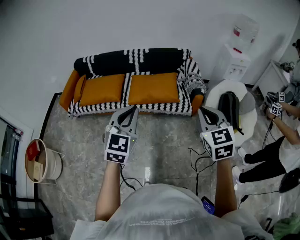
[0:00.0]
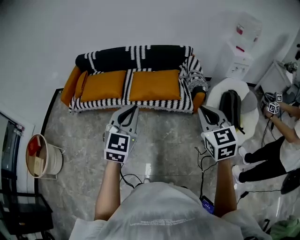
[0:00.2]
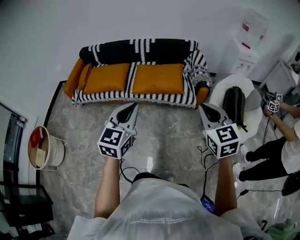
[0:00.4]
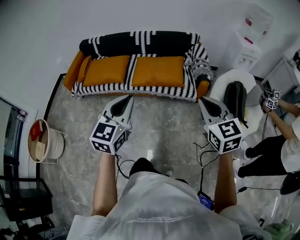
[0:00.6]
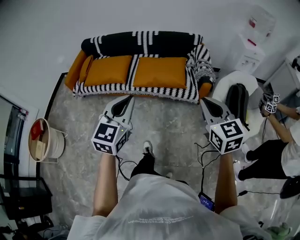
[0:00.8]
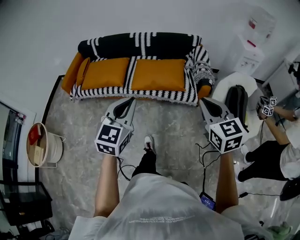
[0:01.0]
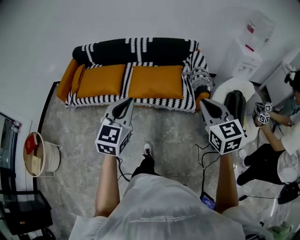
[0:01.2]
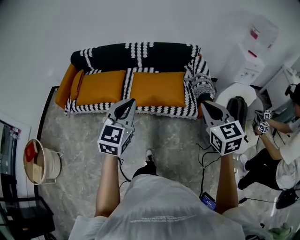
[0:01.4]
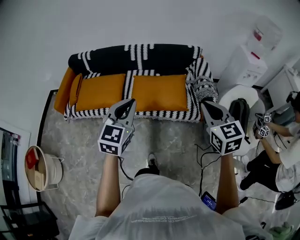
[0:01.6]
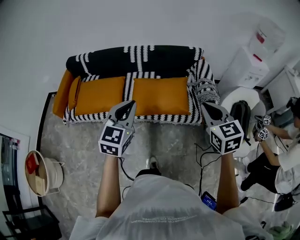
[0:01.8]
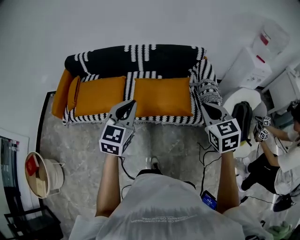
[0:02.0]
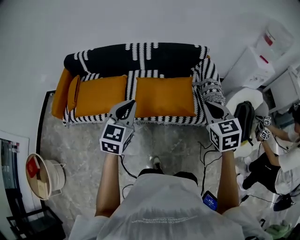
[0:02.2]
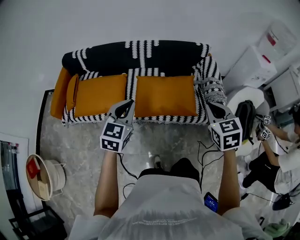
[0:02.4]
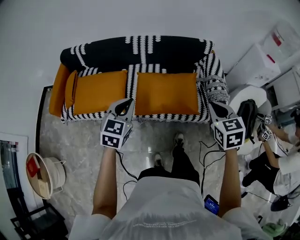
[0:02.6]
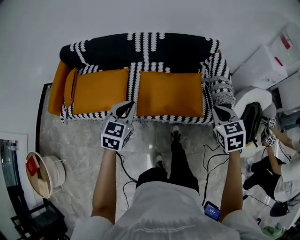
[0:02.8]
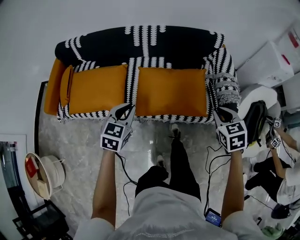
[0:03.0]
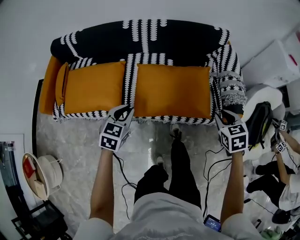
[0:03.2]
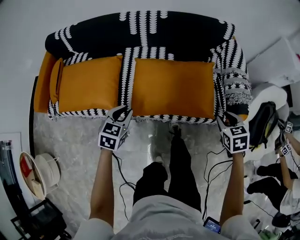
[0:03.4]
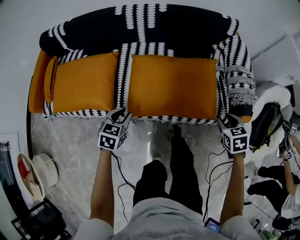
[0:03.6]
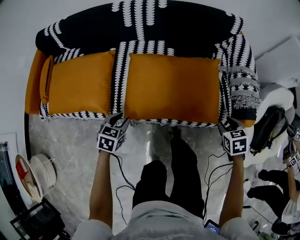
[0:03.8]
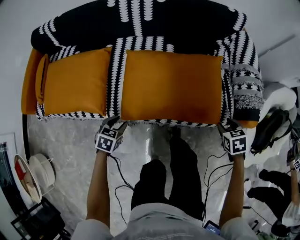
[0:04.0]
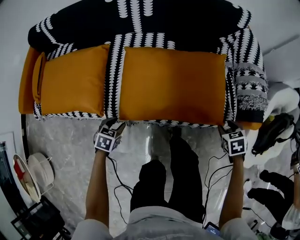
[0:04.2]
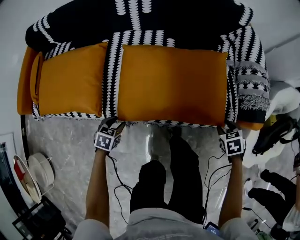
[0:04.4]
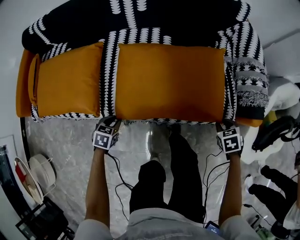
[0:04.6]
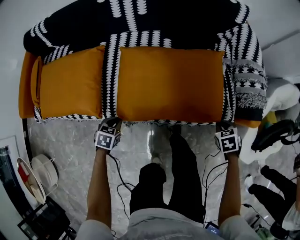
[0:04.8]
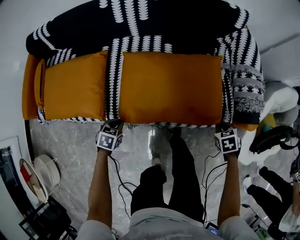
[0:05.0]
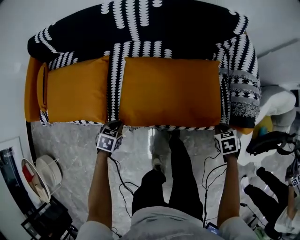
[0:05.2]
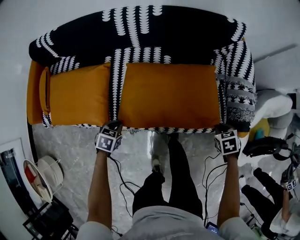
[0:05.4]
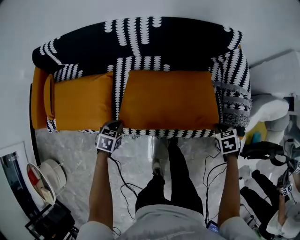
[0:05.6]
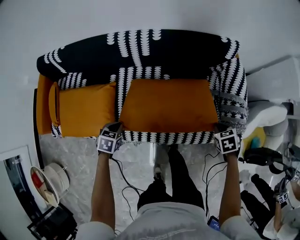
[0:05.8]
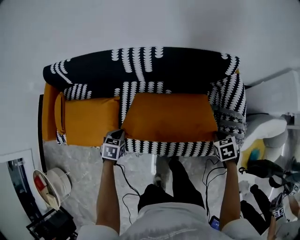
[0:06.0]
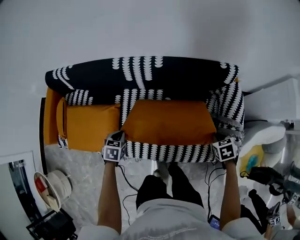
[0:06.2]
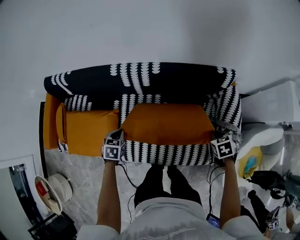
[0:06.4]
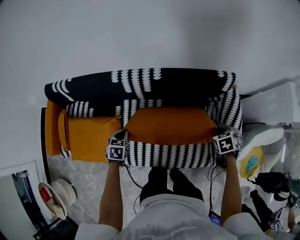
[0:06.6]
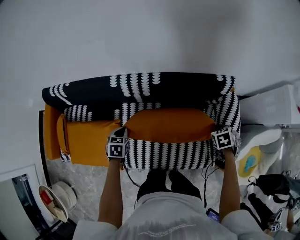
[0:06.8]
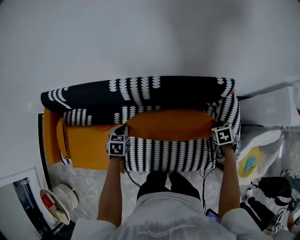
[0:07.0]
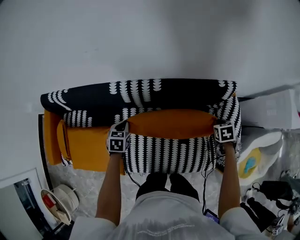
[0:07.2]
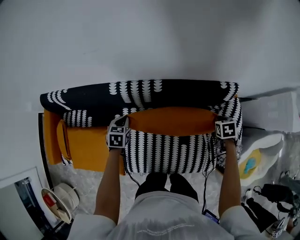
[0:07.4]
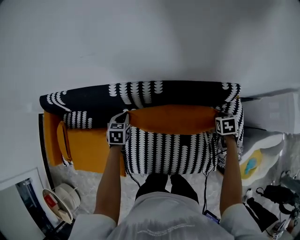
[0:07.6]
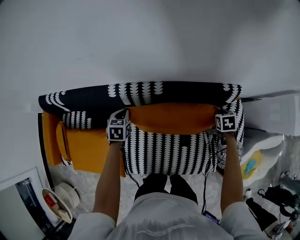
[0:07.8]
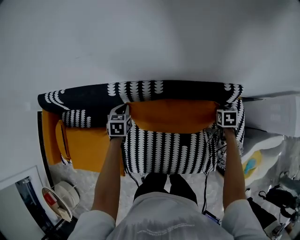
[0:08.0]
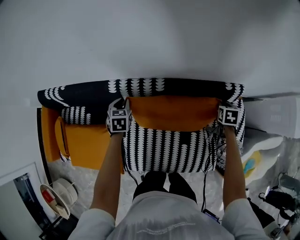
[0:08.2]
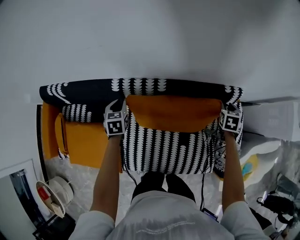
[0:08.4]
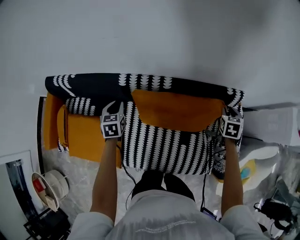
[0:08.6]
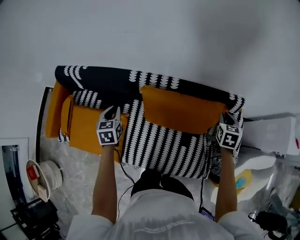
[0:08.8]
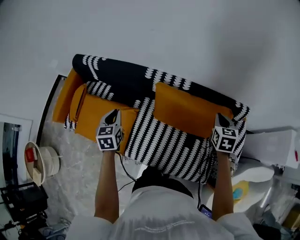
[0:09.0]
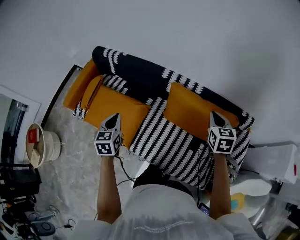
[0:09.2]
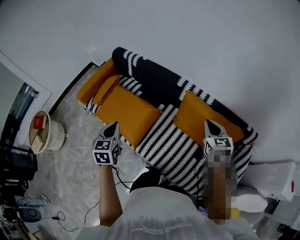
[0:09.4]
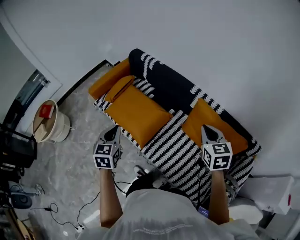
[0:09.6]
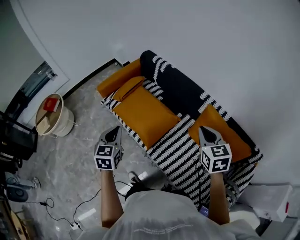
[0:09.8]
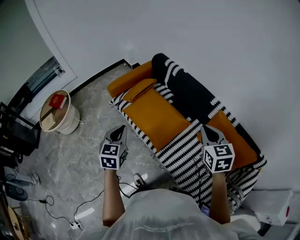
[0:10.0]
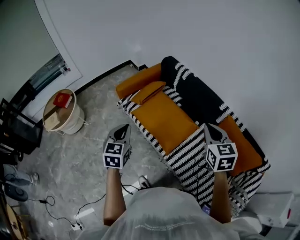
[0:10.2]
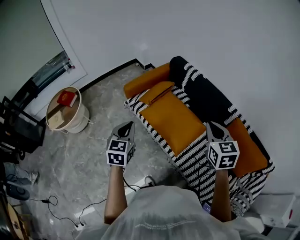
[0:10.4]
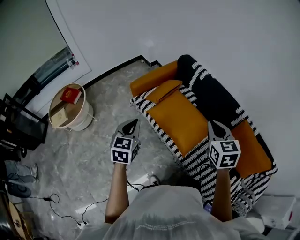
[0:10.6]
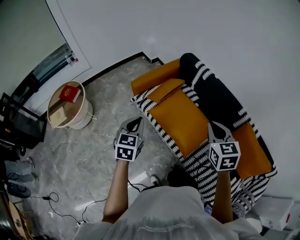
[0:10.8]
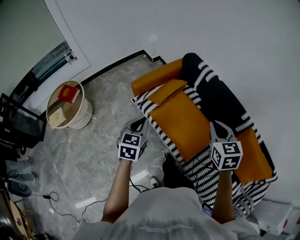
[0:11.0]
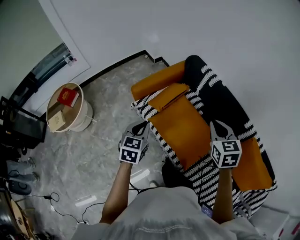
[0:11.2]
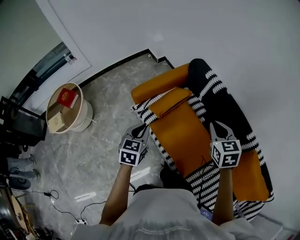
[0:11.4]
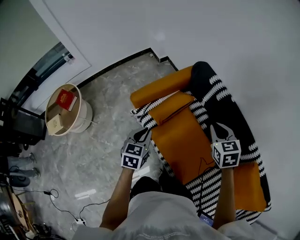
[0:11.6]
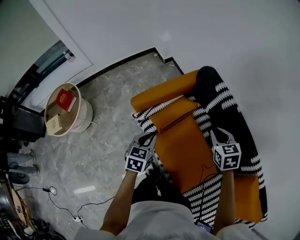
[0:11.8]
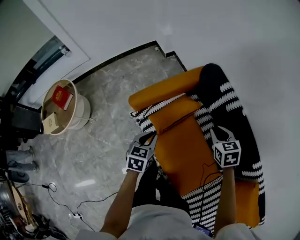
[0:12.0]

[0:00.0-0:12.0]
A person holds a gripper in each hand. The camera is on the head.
0:00.0 to 0:01.6: The two grippers go approximately 25 cm forward.
0:01.6 to 0:03.0: The right gripper goes approximately 30 cm downward and forward, and swivels roughly 30 degrees, while the left gripper moves downward, forward and to the left, some 35 cm, and rotates some 20 degrees.
0:03.0 to 0:04.4: Both grippers travel together downward, roughly 40 cm. The right gripper turns by some 30 degrees, and opens up, while the left gripper tilts its fingers some 30 degrees downward, and opens up.
0:04.4 to 0:06.0: The two grippers go some 20 cm upward. The right gripper closes its fingers; the left gripper closes its fingers.
0:06.0 to 0:07.6: The right gripper shifts by approximately 30 cm, while the left gripper changes place by about 30 cm.
0:07.6 to 0:09.0: The right gripper heads upward and to the left, covering roughly 25 cm, points its fingers approximately 30 degrees further upward, and opens, then closes once more. The left gripper moves backward, upward and to the left, approximately 30 cm, and changes its angle by about 30 degrees.
0:09.0 to 0:10.4: Both grippers are carried about 50 cm. The right gripper rotates about 50 degrees, while the left gripper changes its angle by roughly 20 degrees.
0:10.4 to 0:12.0: The two grippers go some 50 cm forward and downward. The left gripper rotates about 20 degrees, while the right gripper swivels about 30 degrees.

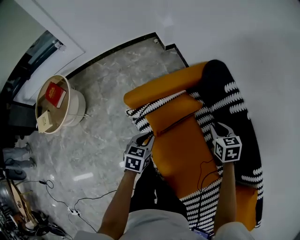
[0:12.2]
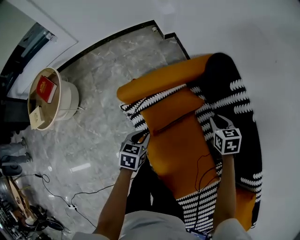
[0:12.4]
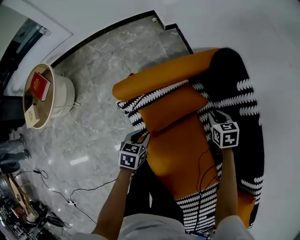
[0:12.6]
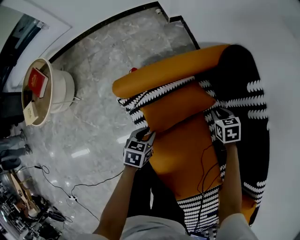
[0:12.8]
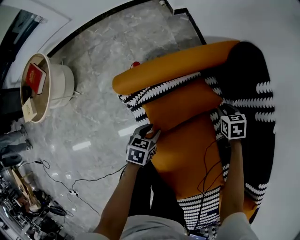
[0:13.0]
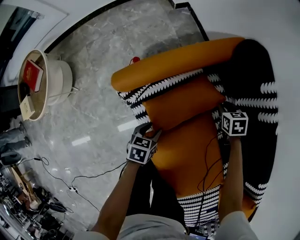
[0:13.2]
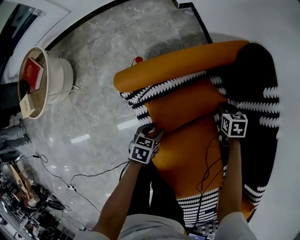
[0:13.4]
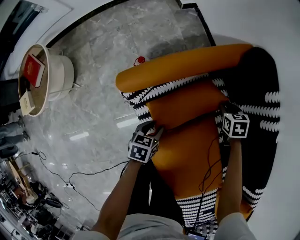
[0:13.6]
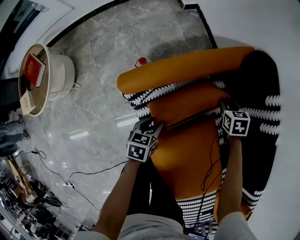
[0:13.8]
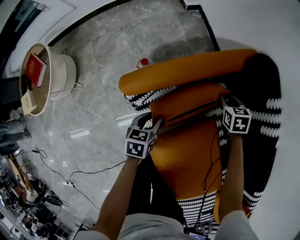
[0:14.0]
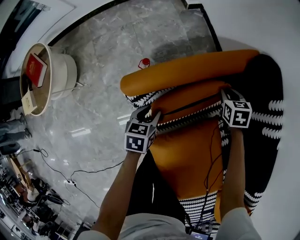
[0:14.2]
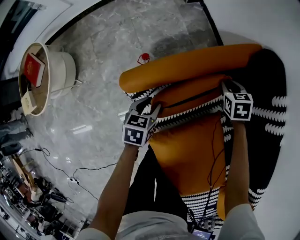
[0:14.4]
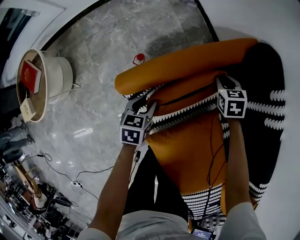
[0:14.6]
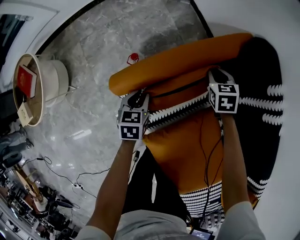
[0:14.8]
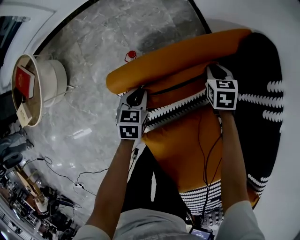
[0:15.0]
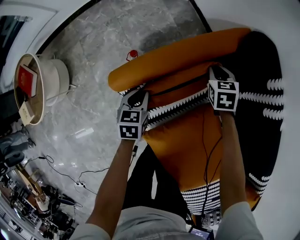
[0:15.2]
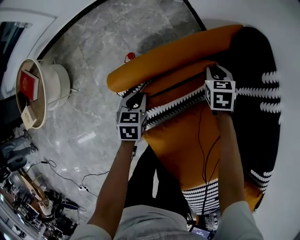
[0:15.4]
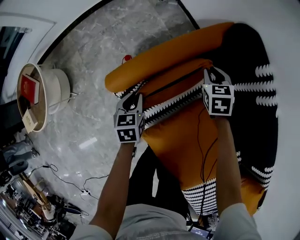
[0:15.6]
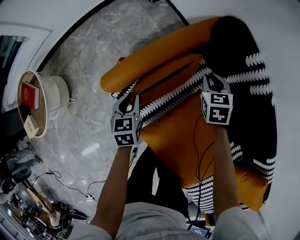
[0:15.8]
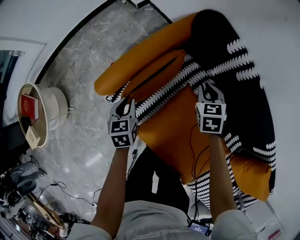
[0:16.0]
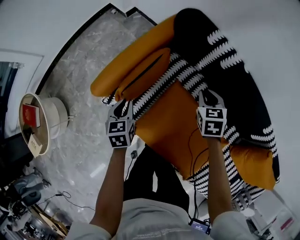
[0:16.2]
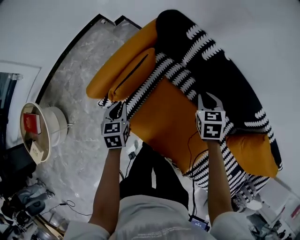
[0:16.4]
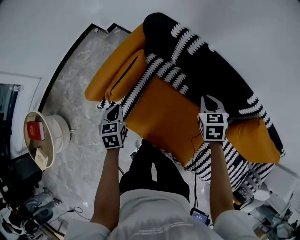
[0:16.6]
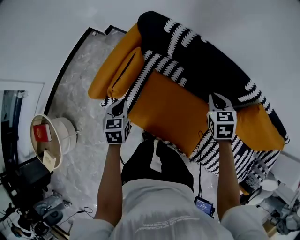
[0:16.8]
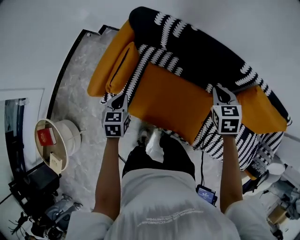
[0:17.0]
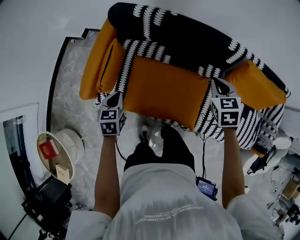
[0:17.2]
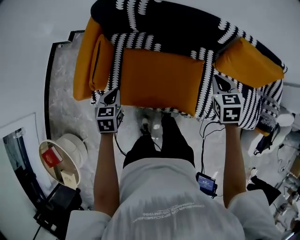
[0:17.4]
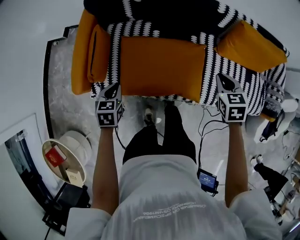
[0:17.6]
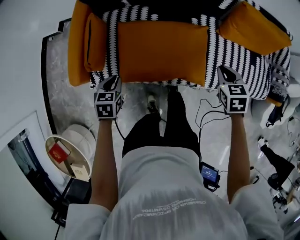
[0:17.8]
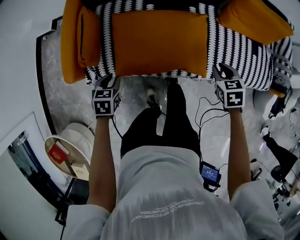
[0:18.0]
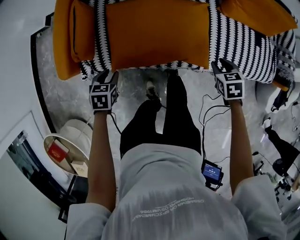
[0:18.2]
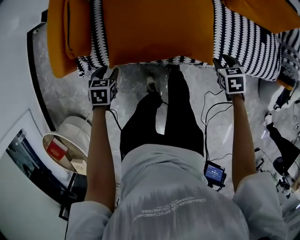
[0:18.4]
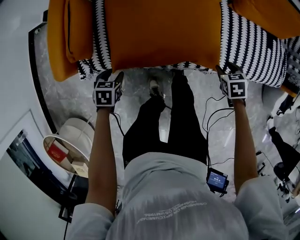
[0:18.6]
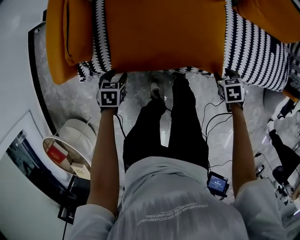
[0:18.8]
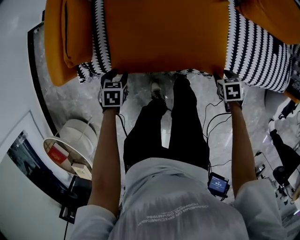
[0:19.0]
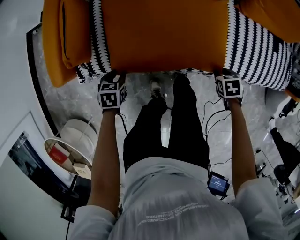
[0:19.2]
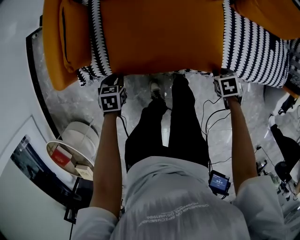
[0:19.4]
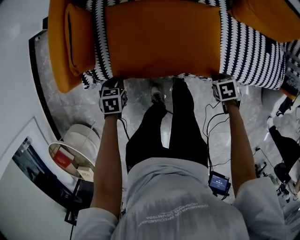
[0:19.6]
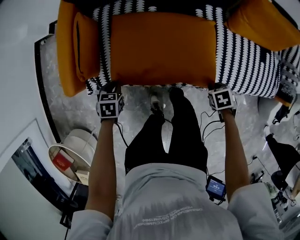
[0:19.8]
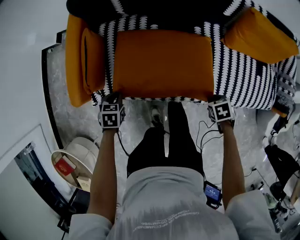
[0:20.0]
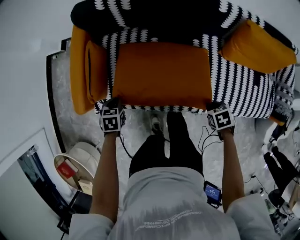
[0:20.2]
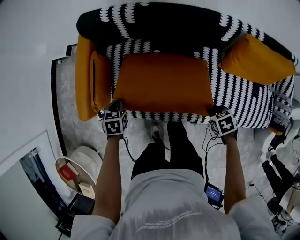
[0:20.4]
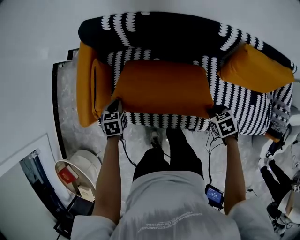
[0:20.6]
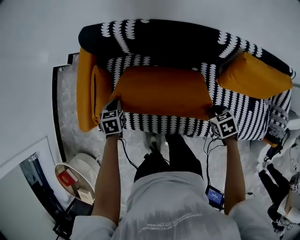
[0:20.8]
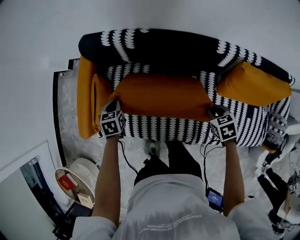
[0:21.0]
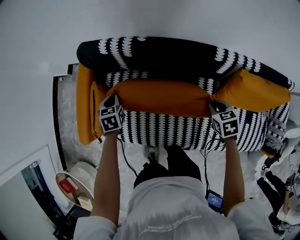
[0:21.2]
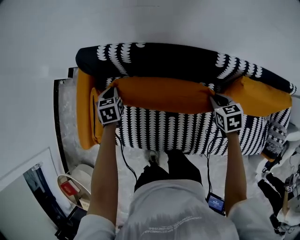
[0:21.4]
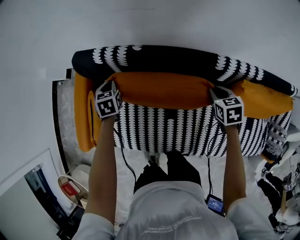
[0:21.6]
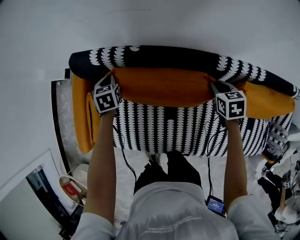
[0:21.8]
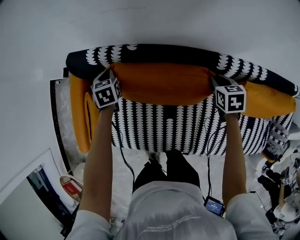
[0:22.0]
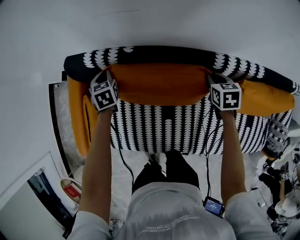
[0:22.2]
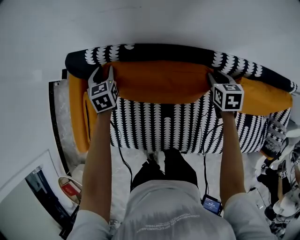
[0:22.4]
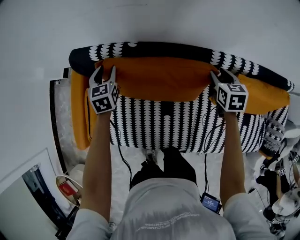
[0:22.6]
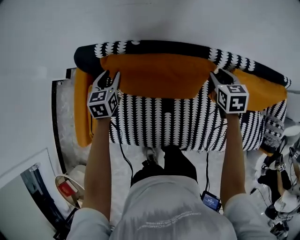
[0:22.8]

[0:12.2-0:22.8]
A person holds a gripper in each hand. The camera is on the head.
0:12.2 to 0:13.8: The right gripper moves downward and forward, some 30 cm. The left gripper travels downward by some 20 cm, and opens its fingers.
0:13.8 to 0:15.2: The left gripper heads forward and to the left, covering approximately 10 cm, and closes its fingers; the right gripper travels to the left and forward by about 10 cm.
0:15.2 to 0:16.8: The right gripper ends up roughly 50 cm from where it was, and changes its angle by about 30 degrees. Meanwhile the left gripper shifts about 25 cm upward, and swivels about 30 degrees.
0:16.8 to 0:18.2: The right gripper shifts by about 40 cm, changes its angle by some 30 degrees, and opens. Meanwhile the left gripper goes approximately 15 cm downward, turns by about 40 degrees, and opens.
0:18.2 to 0:19.8: The right gripper heads downward, covering some 10 cm, swivels approximately 20 degrees, and opens and closes again. Meanwhile the left gripper travels downward and back again, approximately 15 cm each way, and closes up.
0:19.8 to 0:21.2: The left gripper changes place by about 35 cm, and rotates some 20 degrees. Meanwhile the right gripper ends up some 35 cm from where it was, and changes its angle by about 30 degrees.
0:21.2 to 0:22.8: The right gripper moves forward, upward and to the right, about 15 cm, and opens up. The left gripper shifts about 15 cm upward, forward and to the right, rotates some 20 degrees, and opens up.
